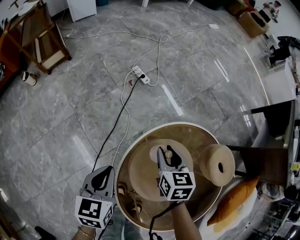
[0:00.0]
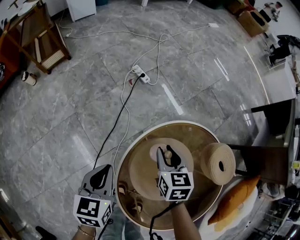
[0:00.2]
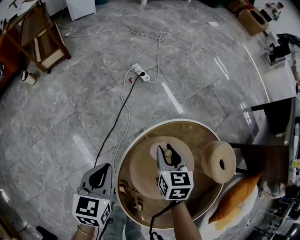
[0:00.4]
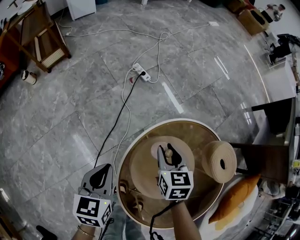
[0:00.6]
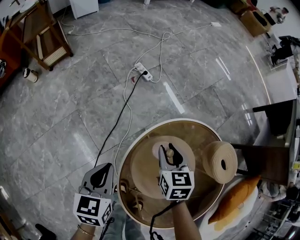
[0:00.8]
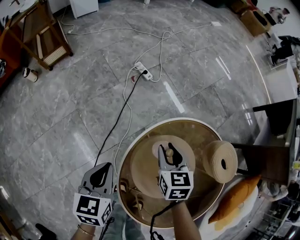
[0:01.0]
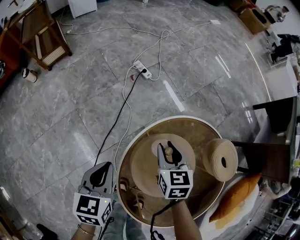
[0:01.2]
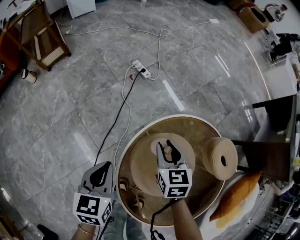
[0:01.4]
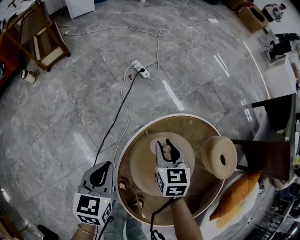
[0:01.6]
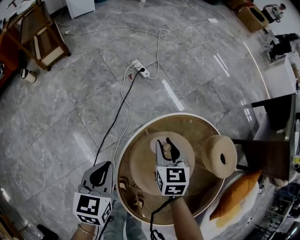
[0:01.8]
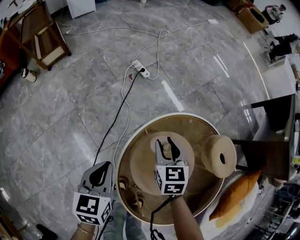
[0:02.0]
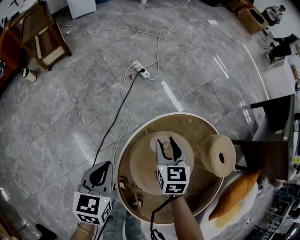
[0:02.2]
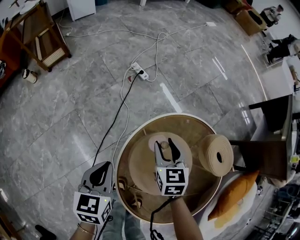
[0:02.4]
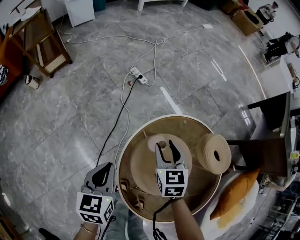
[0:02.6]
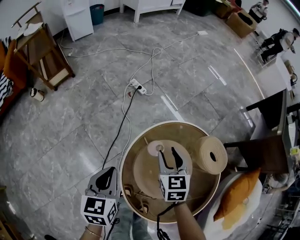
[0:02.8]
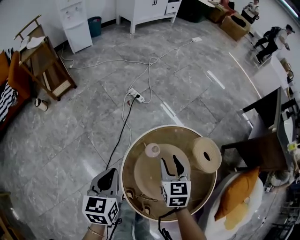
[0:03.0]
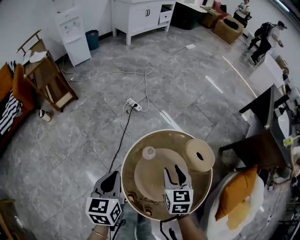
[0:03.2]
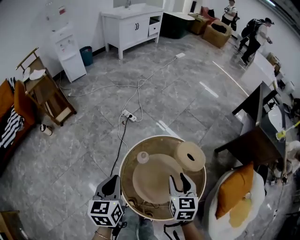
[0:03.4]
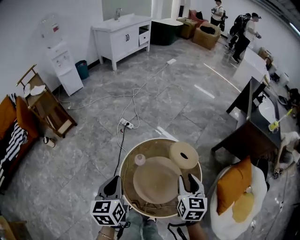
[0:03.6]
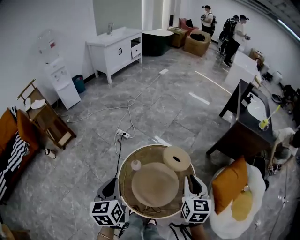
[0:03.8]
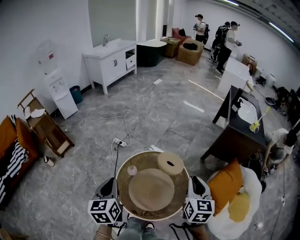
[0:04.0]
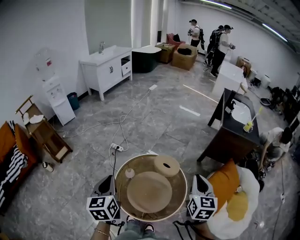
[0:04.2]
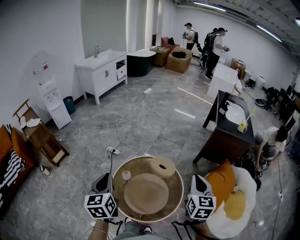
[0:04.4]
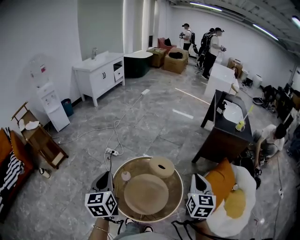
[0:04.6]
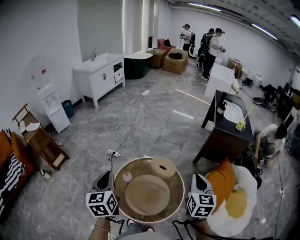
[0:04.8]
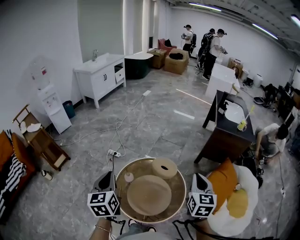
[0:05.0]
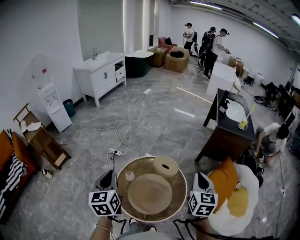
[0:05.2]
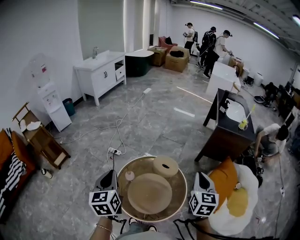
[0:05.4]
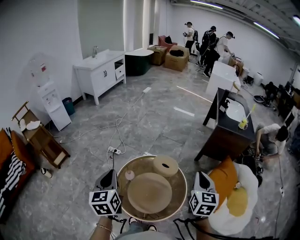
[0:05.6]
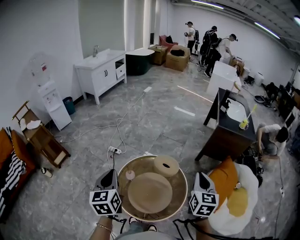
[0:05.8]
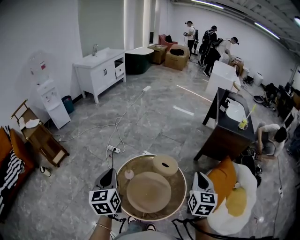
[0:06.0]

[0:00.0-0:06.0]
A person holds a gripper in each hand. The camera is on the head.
0:00.0 to 0:01.6: There are only small adjustments of the grippers.
0:01.6 to 0:03.0: The left gripper heads upward, covering approximately 15 cm. The right gripper heads upward and backward, covering roughly 15 cm.
0:03.0 to 0:04.4: The right gripper is displaced upward, to the right and backward by approximately 50 cm, rotates roughly 40 degrees, and closes its fingers, while the left gripper shifts approximately 35 cm upward and to the right.
0:04.4 to 0:06.0: The grippers make only small movements.

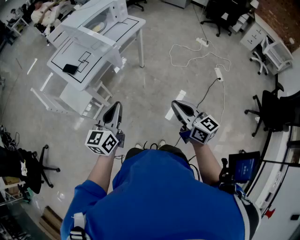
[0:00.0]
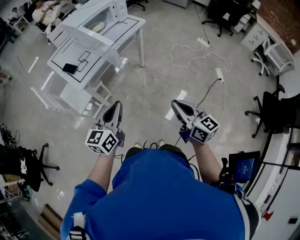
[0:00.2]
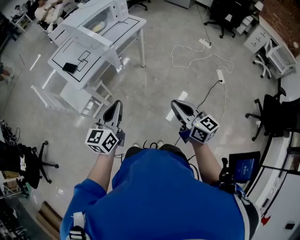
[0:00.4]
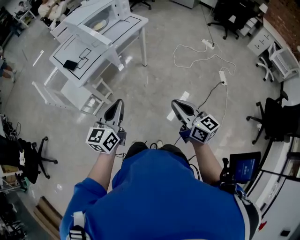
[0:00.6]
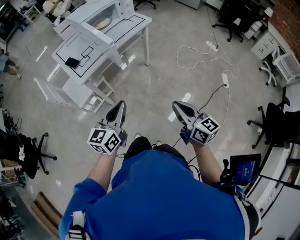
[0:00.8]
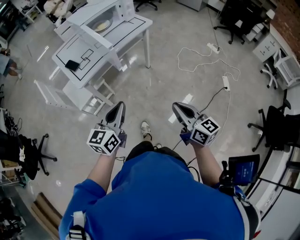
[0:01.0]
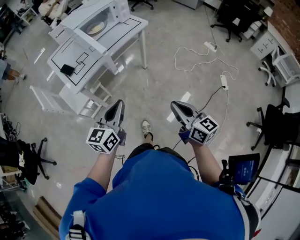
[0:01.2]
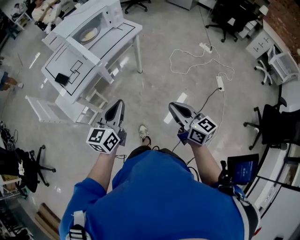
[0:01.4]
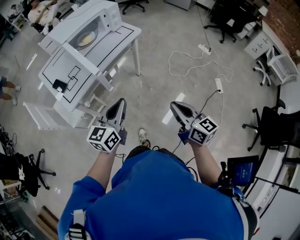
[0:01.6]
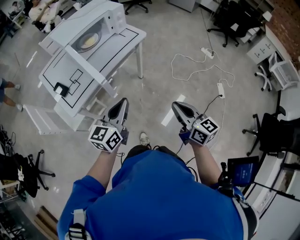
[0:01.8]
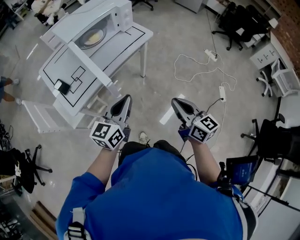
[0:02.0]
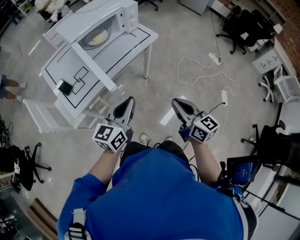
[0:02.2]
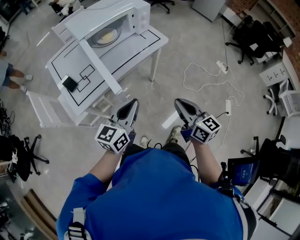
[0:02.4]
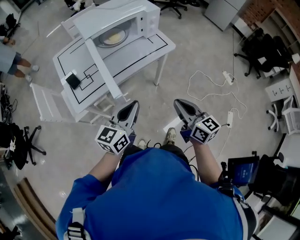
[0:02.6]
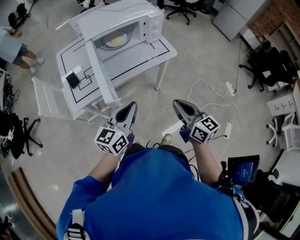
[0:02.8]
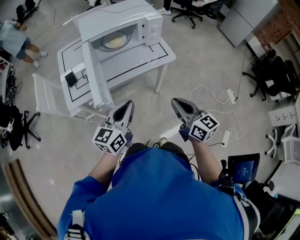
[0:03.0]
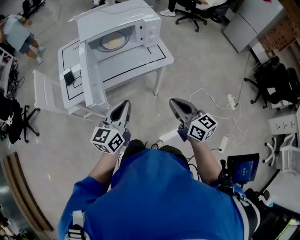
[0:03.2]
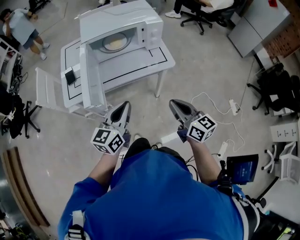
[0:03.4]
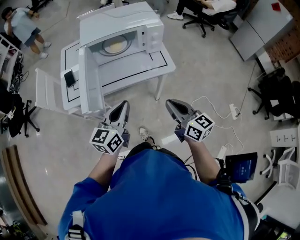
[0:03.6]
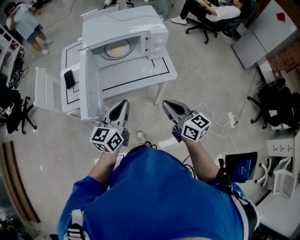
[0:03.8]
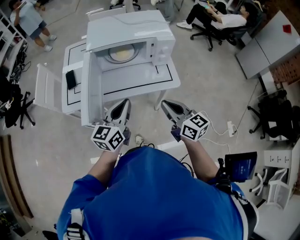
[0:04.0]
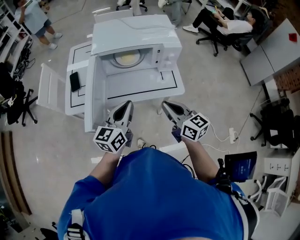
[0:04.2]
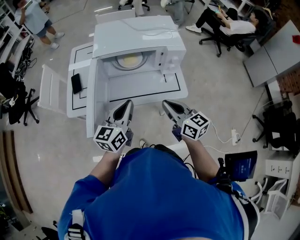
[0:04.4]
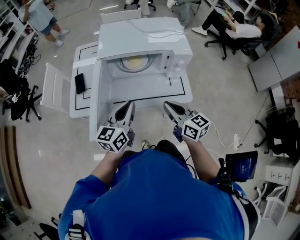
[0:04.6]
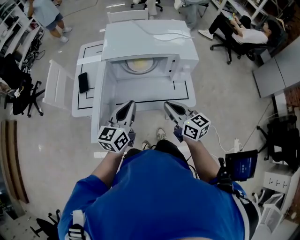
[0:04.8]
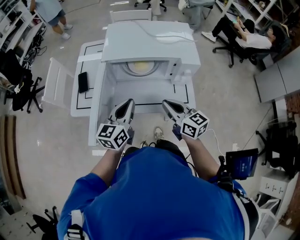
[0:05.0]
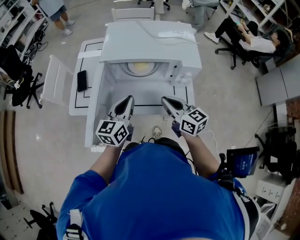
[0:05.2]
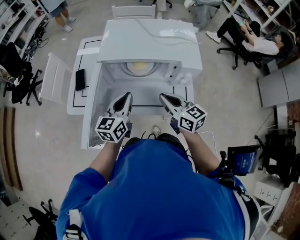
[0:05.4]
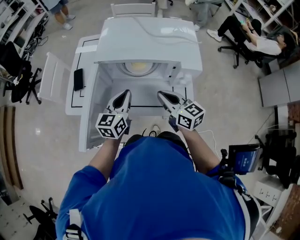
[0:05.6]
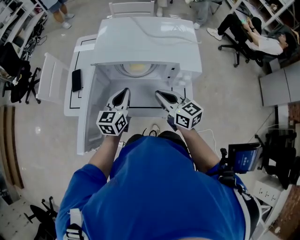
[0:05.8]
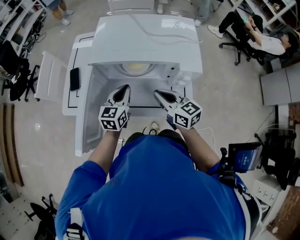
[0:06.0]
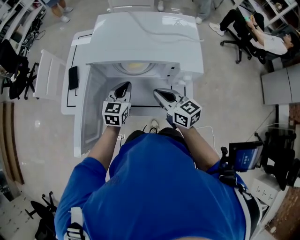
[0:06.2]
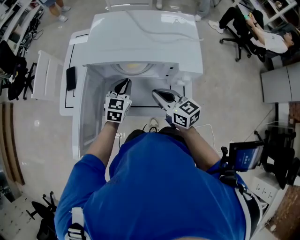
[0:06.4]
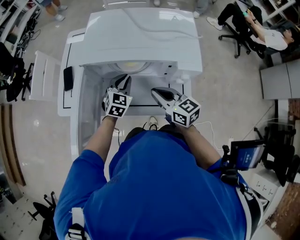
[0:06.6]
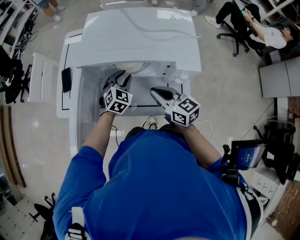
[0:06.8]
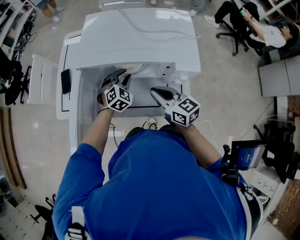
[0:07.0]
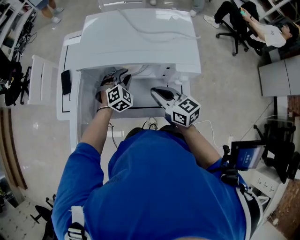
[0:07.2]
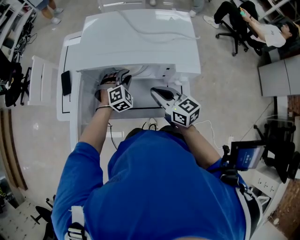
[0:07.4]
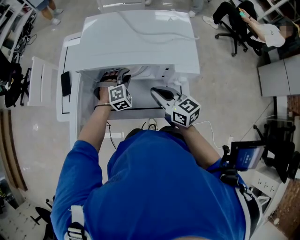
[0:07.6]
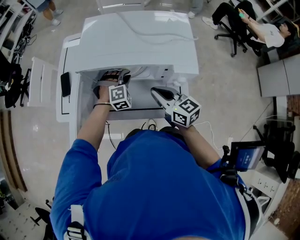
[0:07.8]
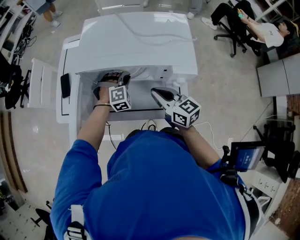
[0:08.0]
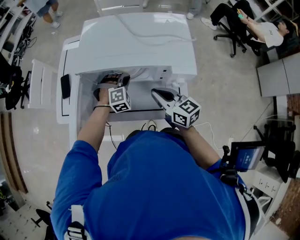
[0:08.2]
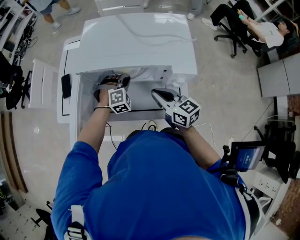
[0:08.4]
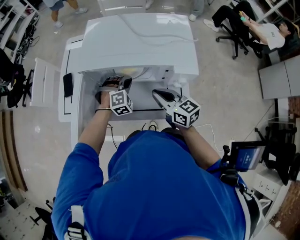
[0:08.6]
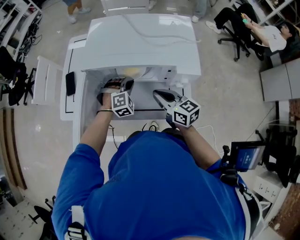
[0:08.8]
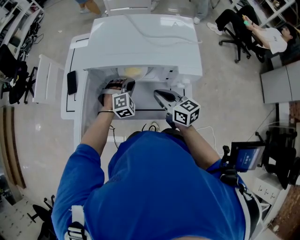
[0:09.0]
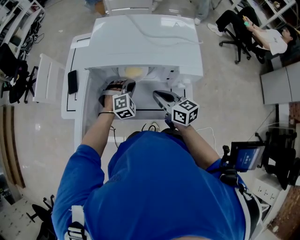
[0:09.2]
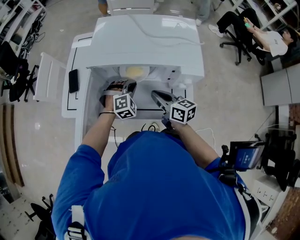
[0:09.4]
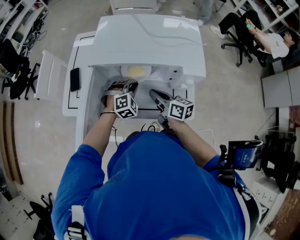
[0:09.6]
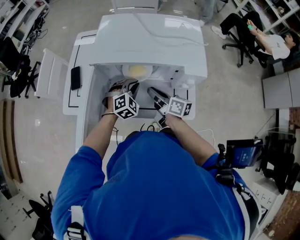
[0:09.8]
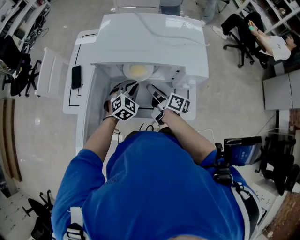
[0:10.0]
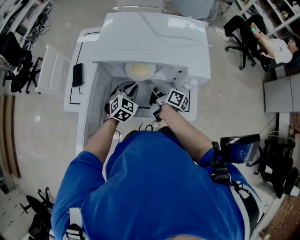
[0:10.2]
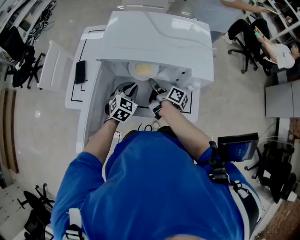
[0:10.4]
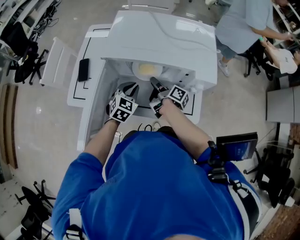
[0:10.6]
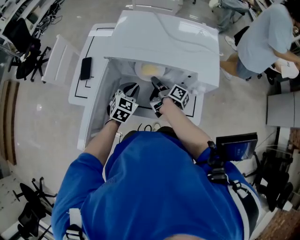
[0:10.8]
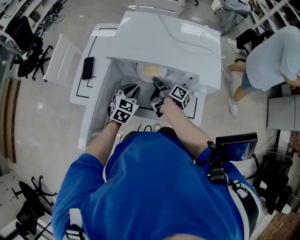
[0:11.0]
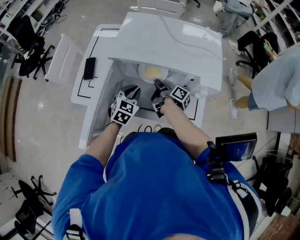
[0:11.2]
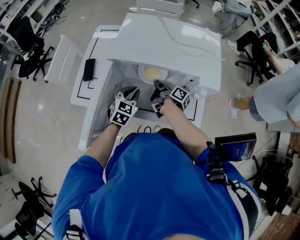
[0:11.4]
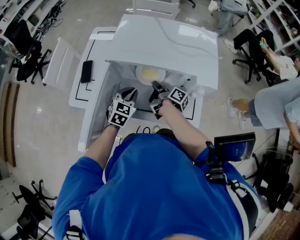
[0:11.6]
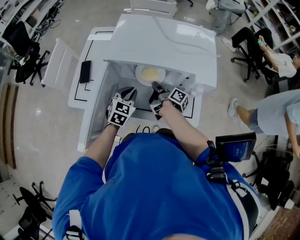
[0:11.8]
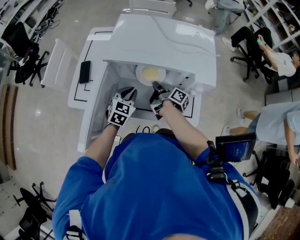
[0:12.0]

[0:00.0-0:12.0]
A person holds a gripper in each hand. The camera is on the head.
0:00.0 to 0:01.6: The grippers both shift forward and to the right by approximately 20 cm.
0:01.6 to 0:03.0: The right gripper is displaced forward by roughly 30 cm, and swivels roughly 30 degrees, while the left gripper heads forward, covering roughly 15 cm, and rotates about 20 degrees.
0:03.0 to 0:04.4: Both grippers travel together forward, about 20 cm. The right gripper swivels some 20 degrees.
0:04.4 to 0:06.0: The right gripper heads forward, covering approximately 15 cm, while the left gripper shifts roughly 20 cm forward and downward, and rotates roughly 20 degrees.
0:06.0 to 0:07.6: The left gripper heads downward, to the right and forward, covering about 15 cm, and twists some 70 degrees clockwise, seen from behind.
0:07.6 to 0:09.0: The grippers move only a little.
0:09.0 to 0:10.4: The left gripper shifts by approximately 5 cm, and rotates around the line of its fingers by roughly 40 degrees, counterclockwise from behind. Meanwhile the right gripper shifts about 10 cm forward and downward, rolls clockwise, seen from behind, by approximately 60 degrees, and opens its fingers.
0:10.4 to 0:12.0: The right gripper closes up.

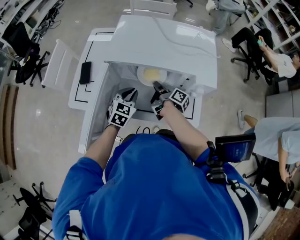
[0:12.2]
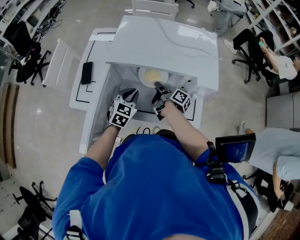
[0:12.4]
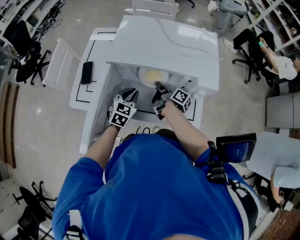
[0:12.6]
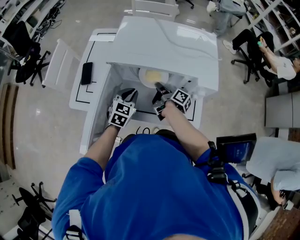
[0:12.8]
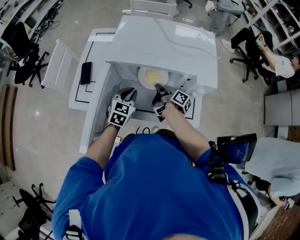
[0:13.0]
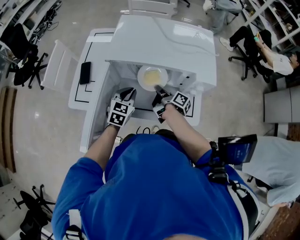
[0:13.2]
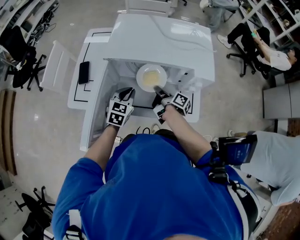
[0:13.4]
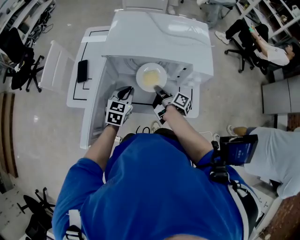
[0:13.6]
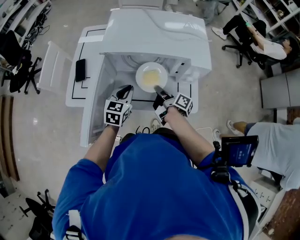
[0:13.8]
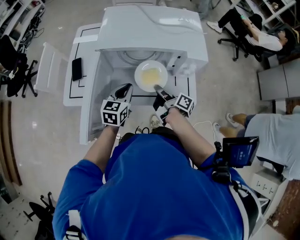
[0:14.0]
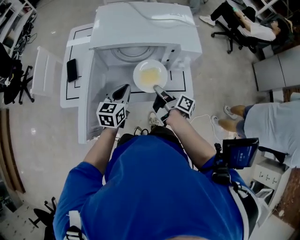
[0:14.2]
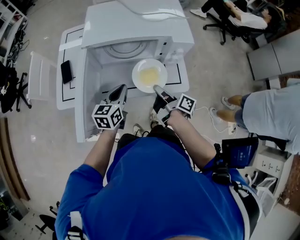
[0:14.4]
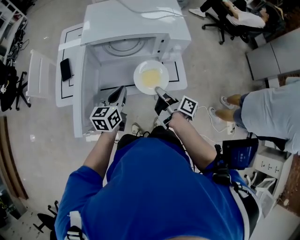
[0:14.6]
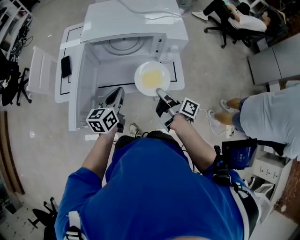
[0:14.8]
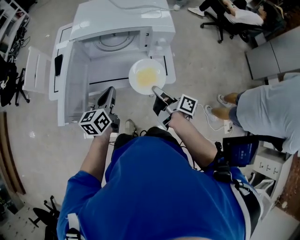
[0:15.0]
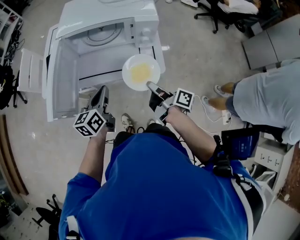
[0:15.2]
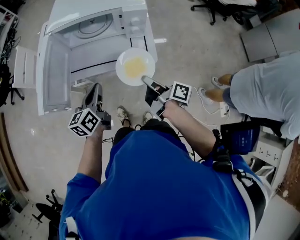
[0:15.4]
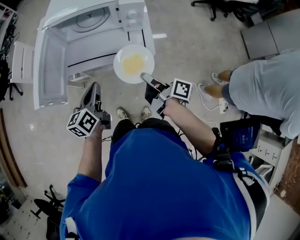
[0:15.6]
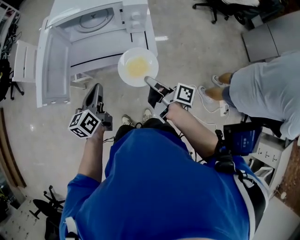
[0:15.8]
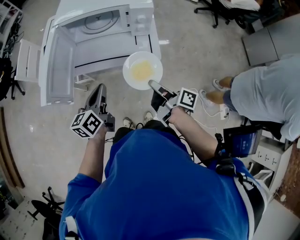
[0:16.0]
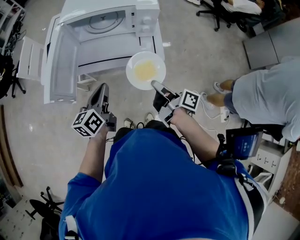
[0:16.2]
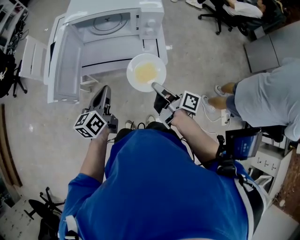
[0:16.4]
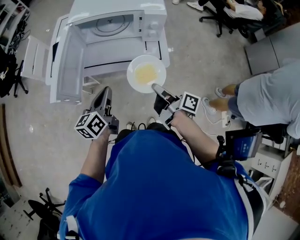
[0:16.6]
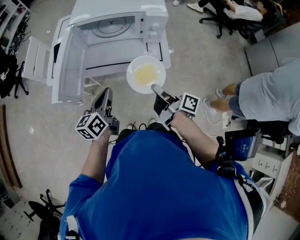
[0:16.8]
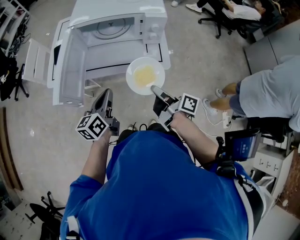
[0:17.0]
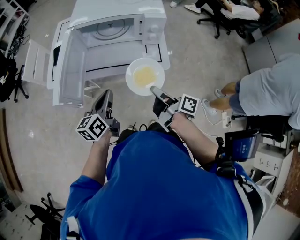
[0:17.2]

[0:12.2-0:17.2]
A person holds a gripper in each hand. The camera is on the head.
0:12.2 to 0:13.8: The right gripper goes roughly 10 cm backward.
0:13.8 to 0:15.6: The left gripper shifts approximately 20 cm backward, and rotates about 30 degrees. Meanwhile the right gripper moves backward and to the right, some 25 cm.
0:15.6 to 0:17.2: The grippers move only a little.
